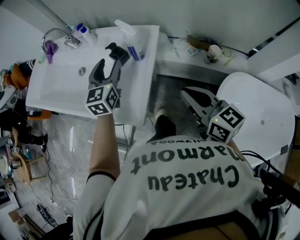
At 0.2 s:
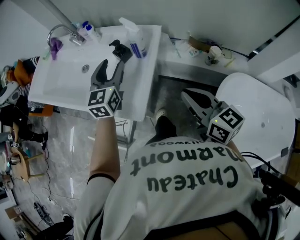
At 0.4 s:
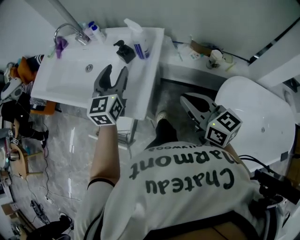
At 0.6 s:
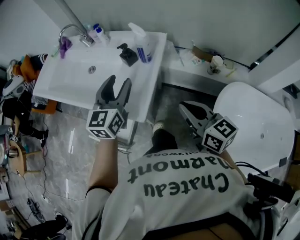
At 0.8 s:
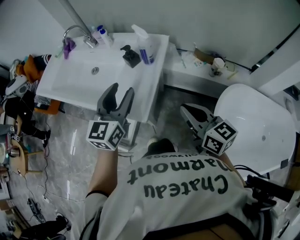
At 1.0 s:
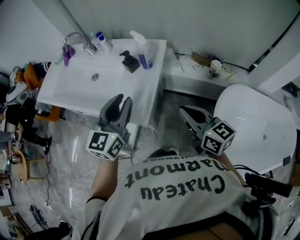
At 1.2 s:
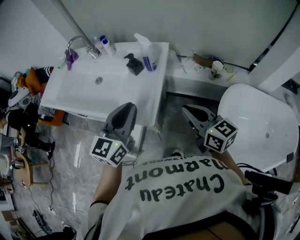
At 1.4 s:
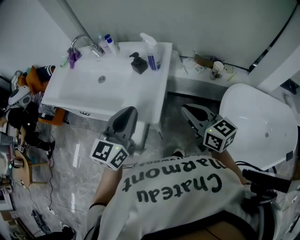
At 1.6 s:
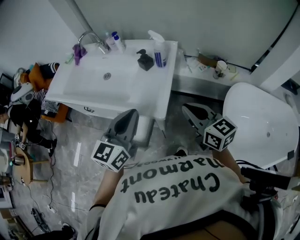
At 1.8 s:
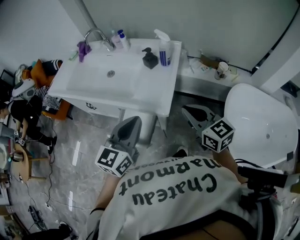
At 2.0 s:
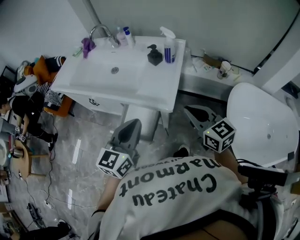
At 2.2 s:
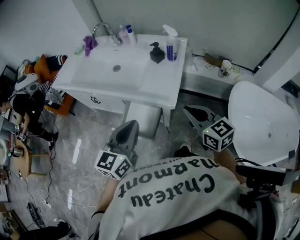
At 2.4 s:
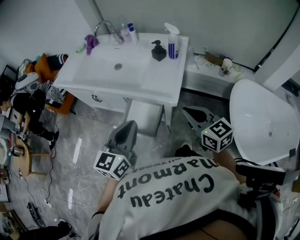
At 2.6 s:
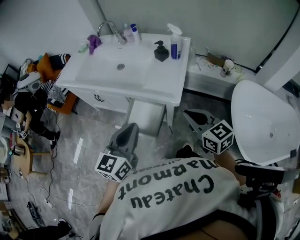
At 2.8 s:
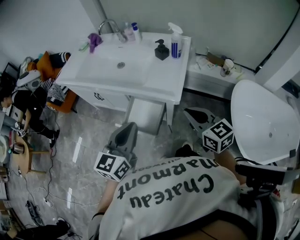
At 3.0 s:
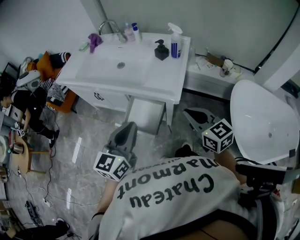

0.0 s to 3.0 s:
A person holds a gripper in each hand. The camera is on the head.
0.0 to 1.6 s: The left gripper travels backward by approximately 25 cm, and closes, while the right gripper is displaced to the left and backward by approximately 15 cm.
1.6 to 3.0 s: The two grippers go approximately 15 cm backward and to the left.

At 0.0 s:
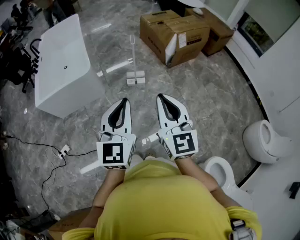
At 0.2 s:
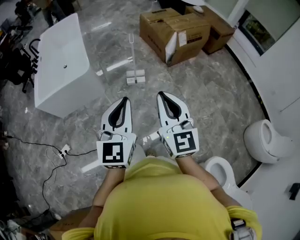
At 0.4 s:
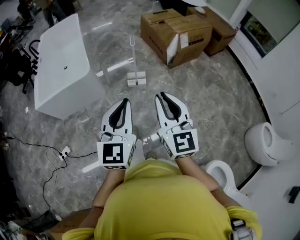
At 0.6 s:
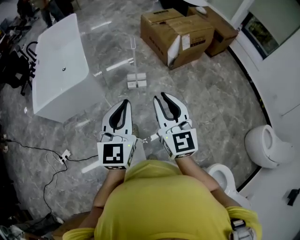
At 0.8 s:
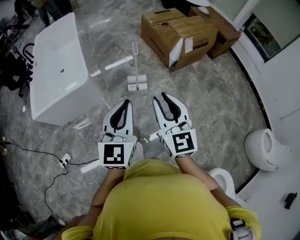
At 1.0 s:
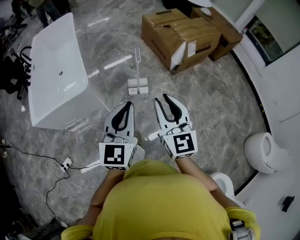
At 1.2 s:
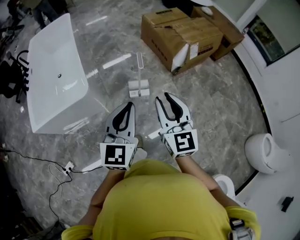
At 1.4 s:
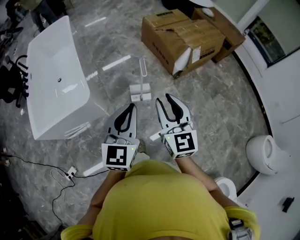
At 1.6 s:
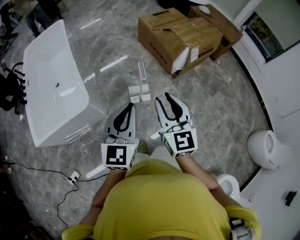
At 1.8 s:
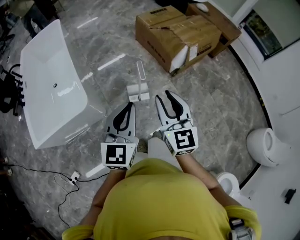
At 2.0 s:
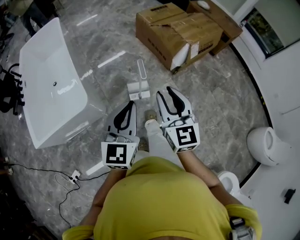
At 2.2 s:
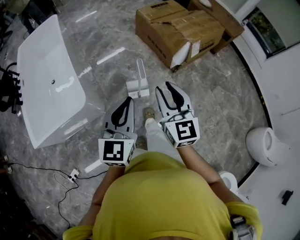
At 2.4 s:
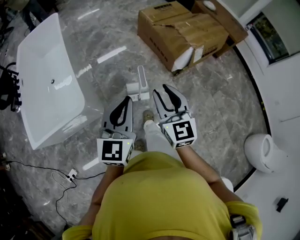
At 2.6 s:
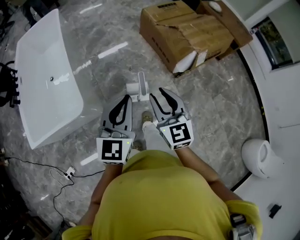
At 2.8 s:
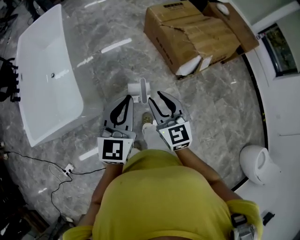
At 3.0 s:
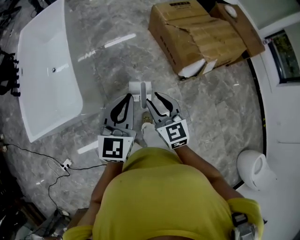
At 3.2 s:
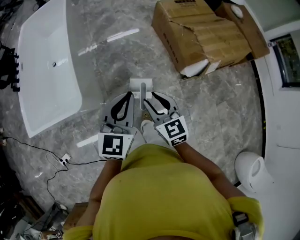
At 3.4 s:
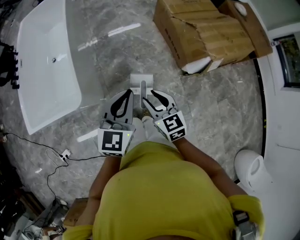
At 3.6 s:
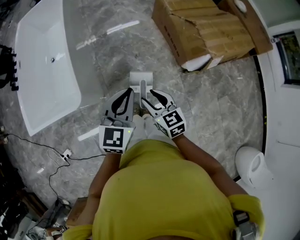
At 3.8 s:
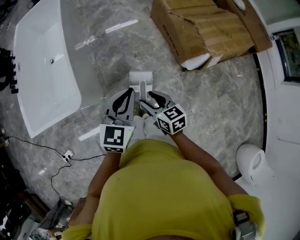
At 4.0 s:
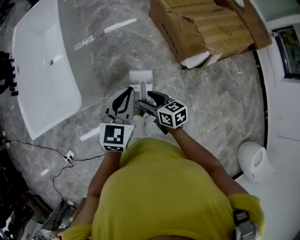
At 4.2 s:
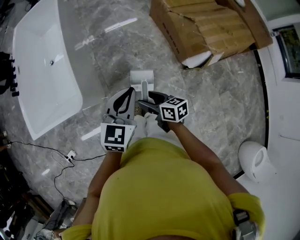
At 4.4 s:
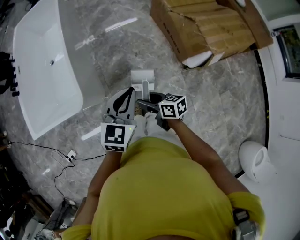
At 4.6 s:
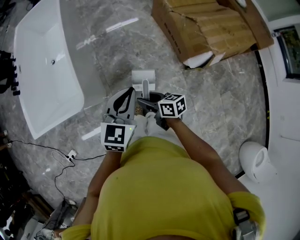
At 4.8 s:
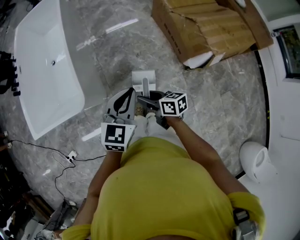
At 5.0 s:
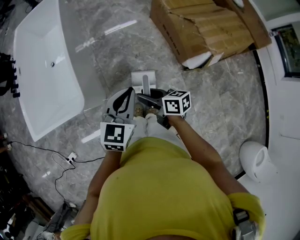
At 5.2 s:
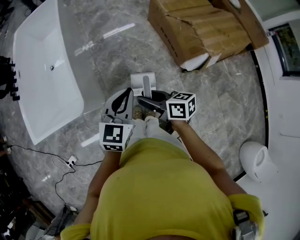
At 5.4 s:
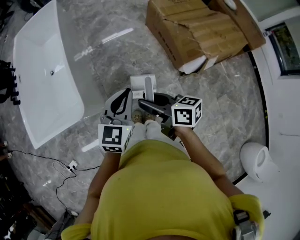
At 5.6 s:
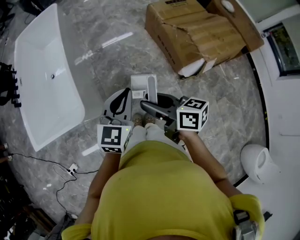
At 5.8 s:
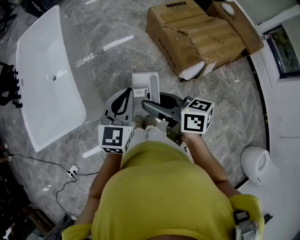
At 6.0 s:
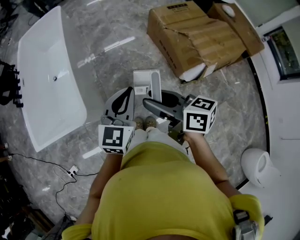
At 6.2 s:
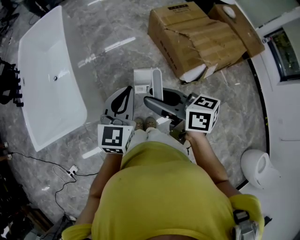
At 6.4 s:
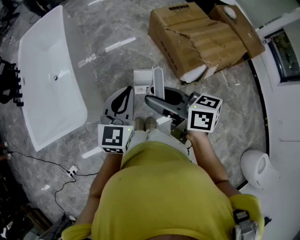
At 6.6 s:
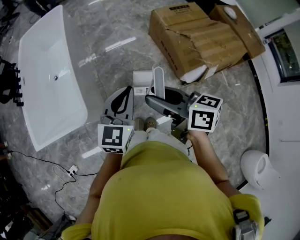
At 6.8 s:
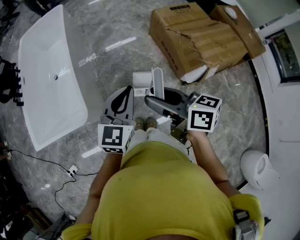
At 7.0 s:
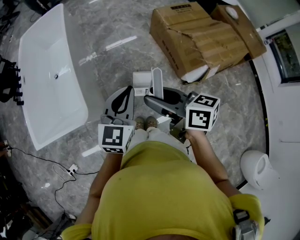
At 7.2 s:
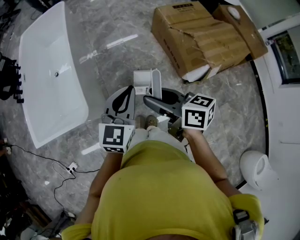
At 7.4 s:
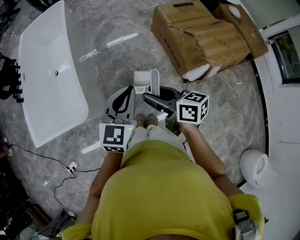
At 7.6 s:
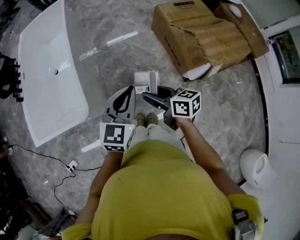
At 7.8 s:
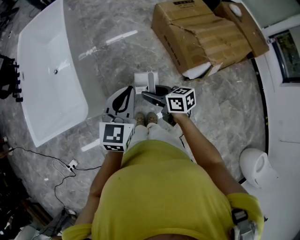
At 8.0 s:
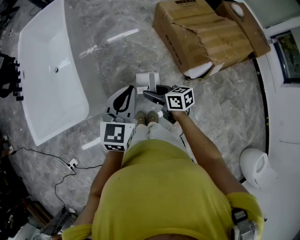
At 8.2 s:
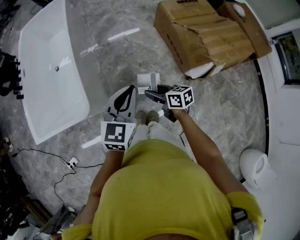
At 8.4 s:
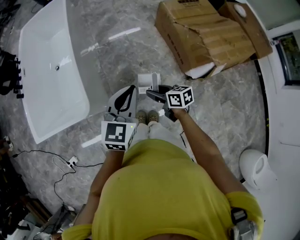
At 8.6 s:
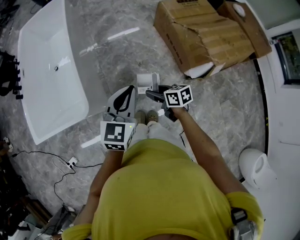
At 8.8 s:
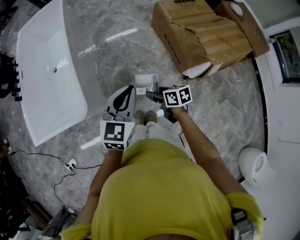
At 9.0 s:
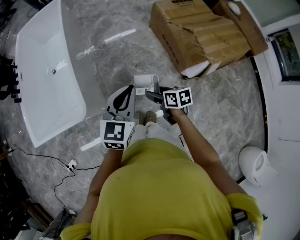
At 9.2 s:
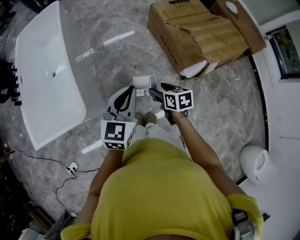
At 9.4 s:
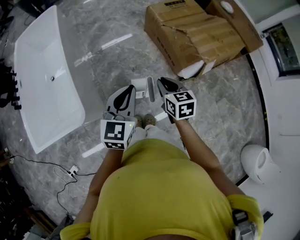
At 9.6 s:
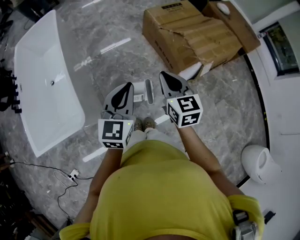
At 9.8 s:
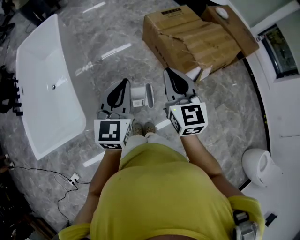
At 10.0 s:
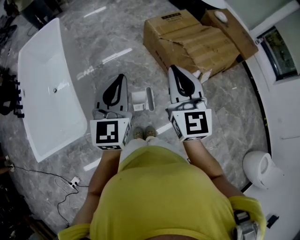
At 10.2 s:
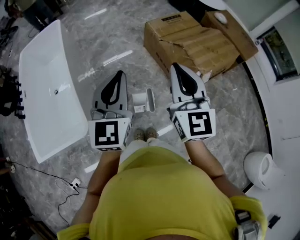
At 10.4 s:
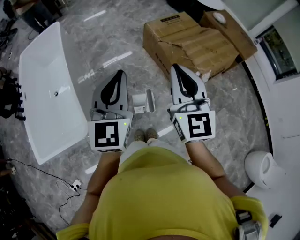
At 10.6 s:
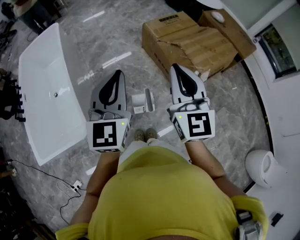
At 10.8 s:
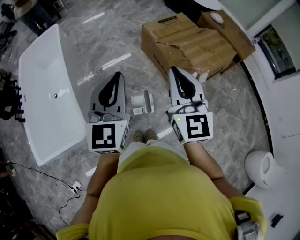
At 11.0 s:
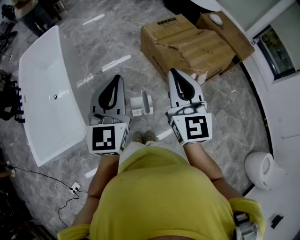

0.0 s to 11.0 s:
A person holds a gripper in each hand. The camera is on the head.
0.0 to 1.6 s: Both grippers travel together forward, about 35 cm. The right gripper opens its fingers.
1.6 to 3.2 s: The right gripper is displaced forward and downward by some 25 cm, and rotates approximately 30 degrees. Meanwhile the left gripper travels forward by approximately 25 cm.
3.2 to 4.8 s: The right gripper heads downward, covering approximately 10 cm, rolls clockwise, seen from behind, by roughly 40 degrees, and opens, then closes again. Meanwhile the left gripper travels downward by some 5 cm.
4.8 to 6.2 s: The left gripper is displaced upward by roughly 5 cm. Meanwhile the right gripper moves upward, roughly 25 cm.
6.2 to 7.8 s: The right gripper shifts about 20 cm downward.
7.8 to 9.4 s: The right gripper is displaced to the right by about 10 cm, swivels some 40 degrees, and closes its fingers.
9.4 to 11.0 s: The left gripper goes roughly 15 cm upward, and changes its angle by about 20 degrees, while the right gripper shifts about 25 cm upward, and tips its fingers upward by approximately 40 degrees.

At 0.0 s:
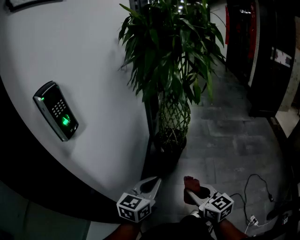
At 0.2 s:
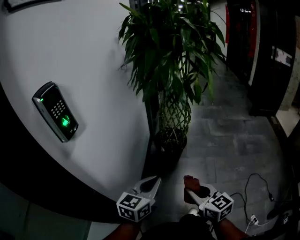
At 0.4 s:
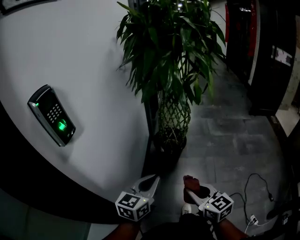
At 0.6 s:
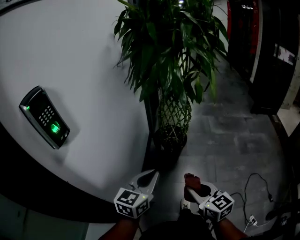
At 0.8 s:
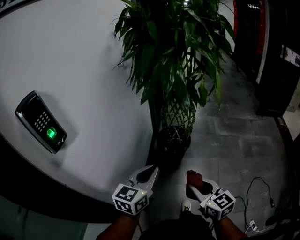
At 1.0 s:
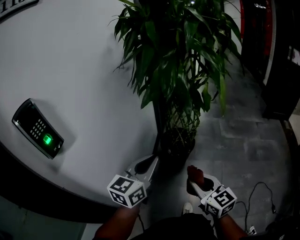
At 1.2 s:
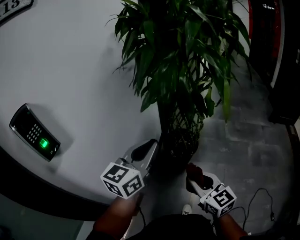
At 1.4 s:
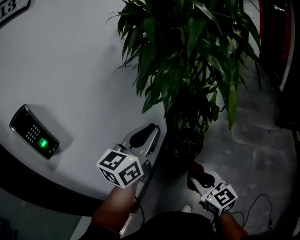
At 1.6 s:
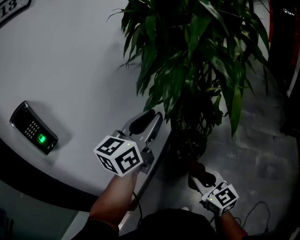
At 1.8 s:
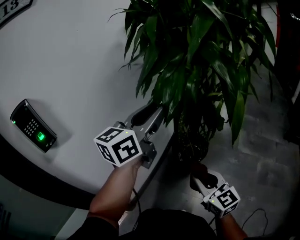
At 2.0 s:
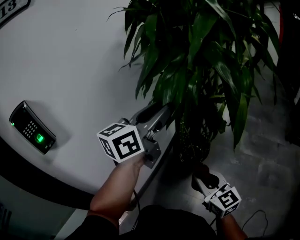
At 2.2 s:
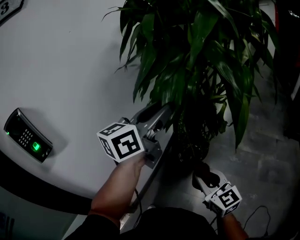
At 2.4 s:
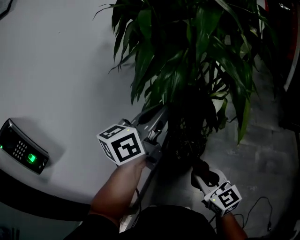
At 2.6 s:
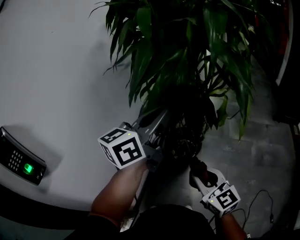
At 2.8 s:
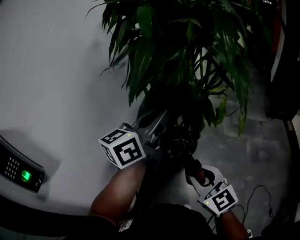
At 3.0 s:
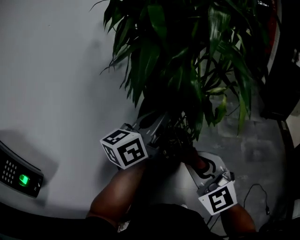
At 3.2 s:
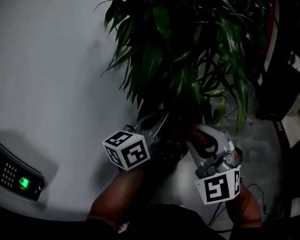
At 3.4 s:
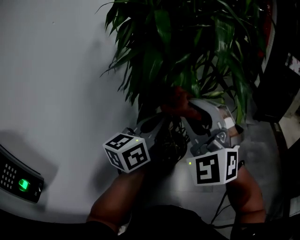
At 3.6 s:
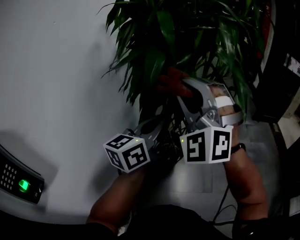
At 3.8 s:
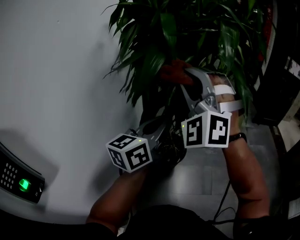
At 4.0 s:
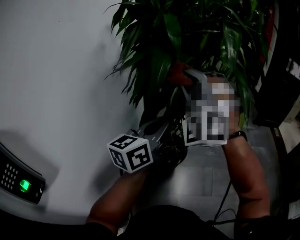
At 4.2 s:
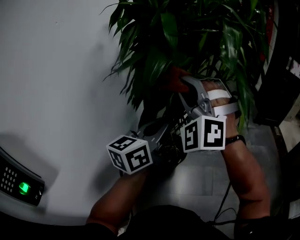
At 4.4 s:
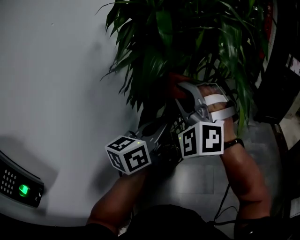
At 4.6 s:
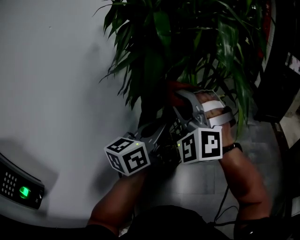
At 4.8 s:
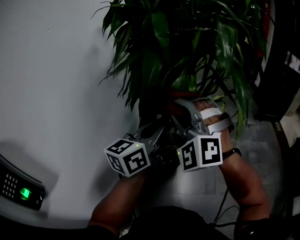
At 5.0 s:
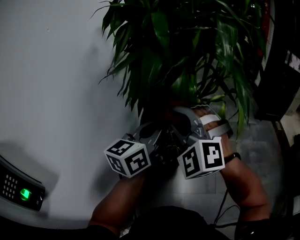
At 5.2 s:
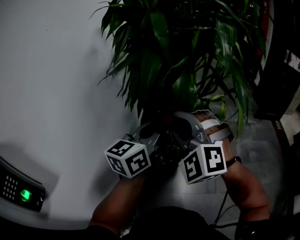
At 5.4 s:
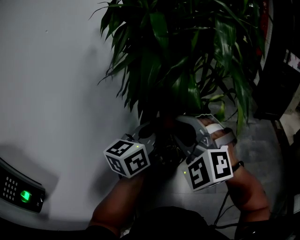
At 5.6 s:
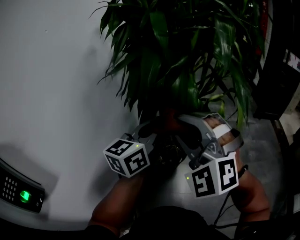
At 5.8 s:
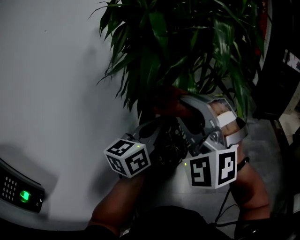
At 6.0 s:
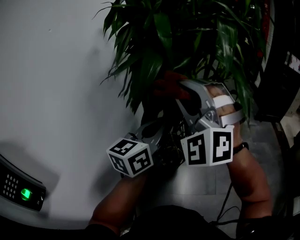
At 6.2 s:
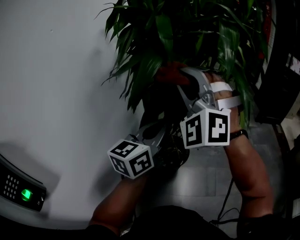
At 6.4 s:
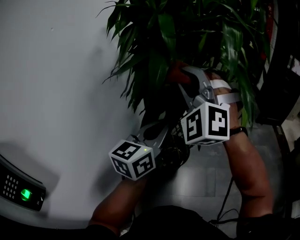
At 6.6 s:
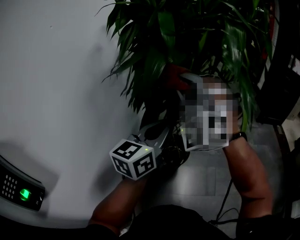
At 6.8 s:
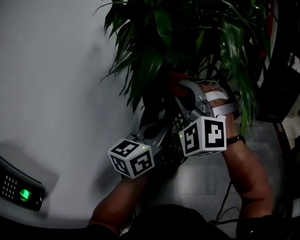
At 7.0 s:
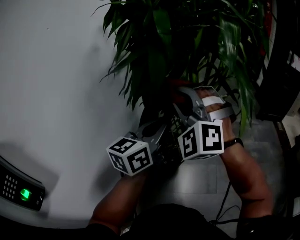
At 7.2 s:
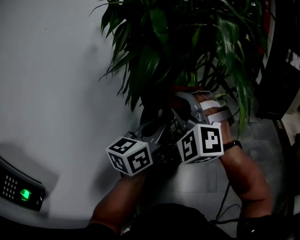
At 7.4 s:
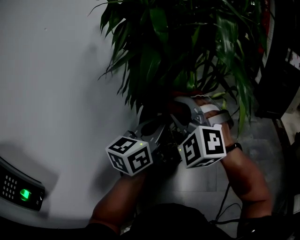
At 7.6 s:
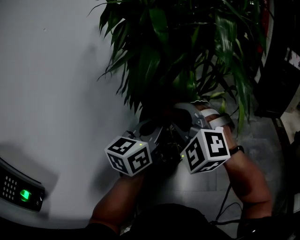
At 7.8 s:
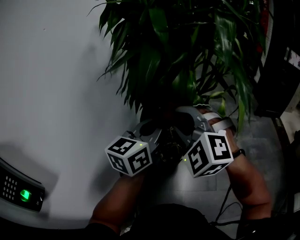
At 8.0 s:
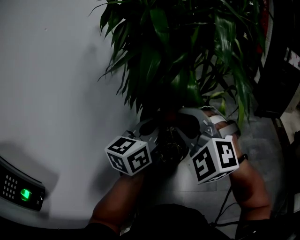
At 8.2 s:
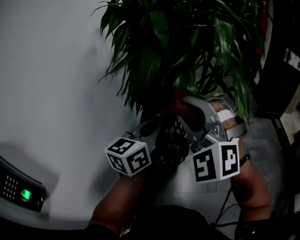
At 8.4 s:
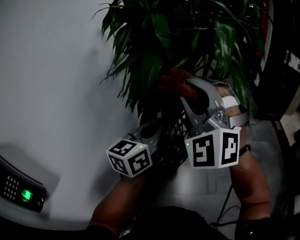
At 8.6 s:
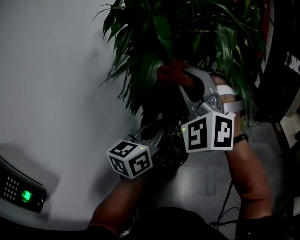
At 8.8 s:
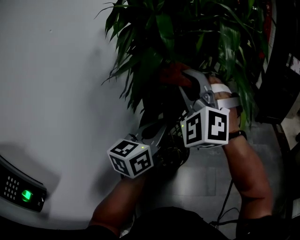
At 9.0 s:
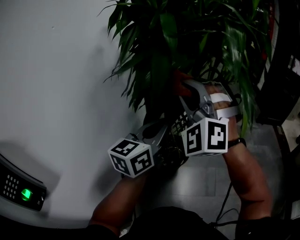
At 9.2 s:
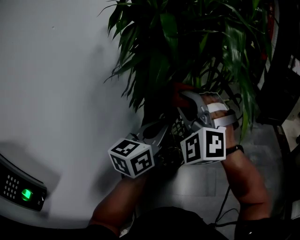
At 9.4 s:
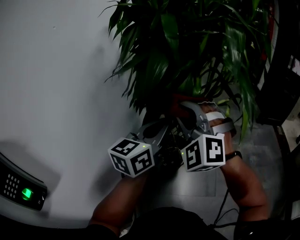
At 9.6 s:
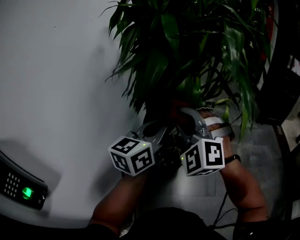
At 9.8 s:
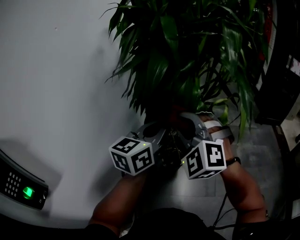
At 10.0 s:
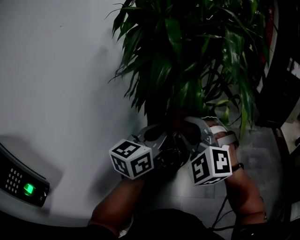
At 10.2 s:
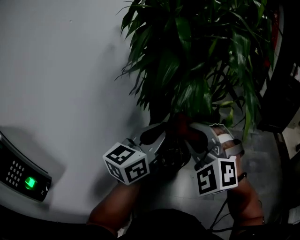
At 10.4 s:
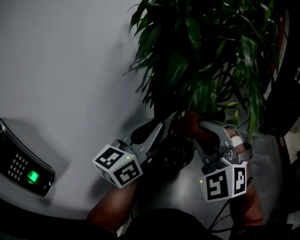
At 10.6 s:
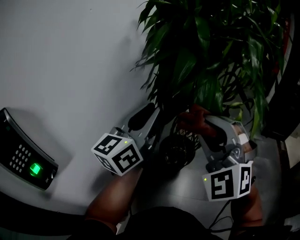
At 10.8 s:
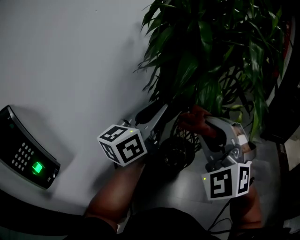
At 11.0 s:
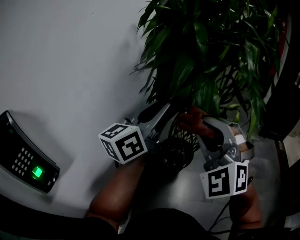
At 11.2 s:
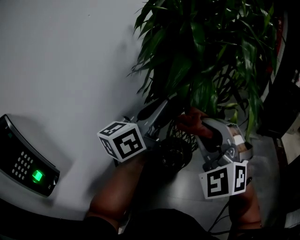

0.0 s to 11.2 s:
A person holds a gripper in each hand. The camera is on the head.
0.0 to 1.6 s: The left gripper travels forward and upward by some 35 cm, changes its angle by some 20 degrees, and opens its fingers, while the right gripper heads forward, covering about 25 cm.
1.6 to 3.2 s: The left gripper heads forward, covering roughly 5 cm, and rotates some 30 degrees. The right gripper goes roughly 20 cm upward, to the left and forward, and rolls counterclockwise, seen from behind, by approximately 50 degrees.
3.2 to 4.8 s: The right gripper shifts roughly 10 cm forward and to the left, and rotates some 30 degrees.
4.8 to 6.4 s: The right gripper is displaced upward by approximately 10 cm.
6.4 to 8.0 s: The right gripper moves downward and backward, approximately 15 cm, and rotates about 30 degrees.
8.0 to 9.6 s: The right gripper travels upward and back again, roughly 10 cm each way.
9.6 to 11.2 s: The right gripper moves backward, roughly 10 cm. Meanwhile the left gripper goes roughly 10 cm upward and to the left.
